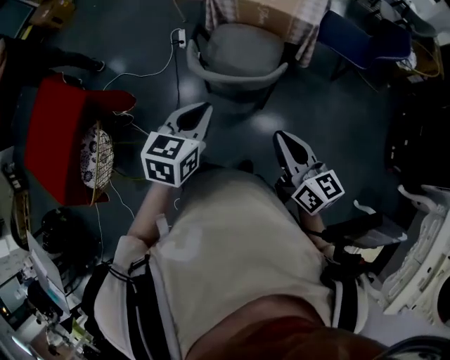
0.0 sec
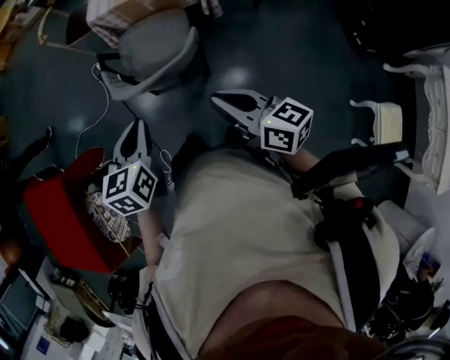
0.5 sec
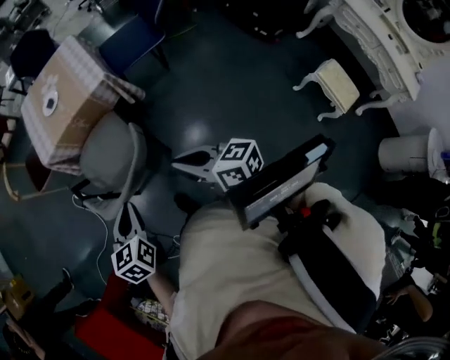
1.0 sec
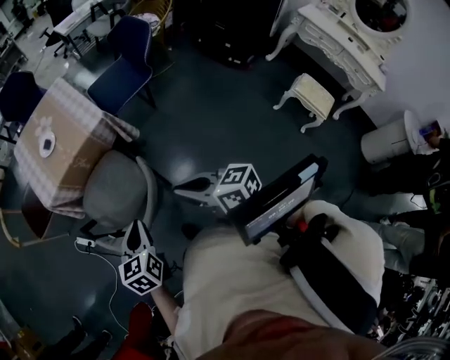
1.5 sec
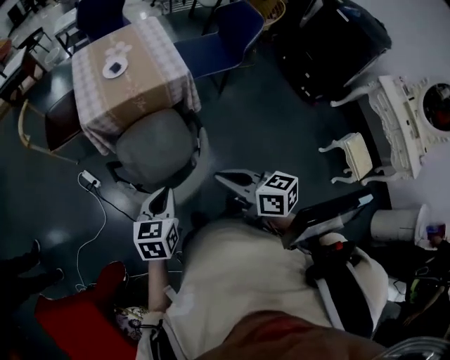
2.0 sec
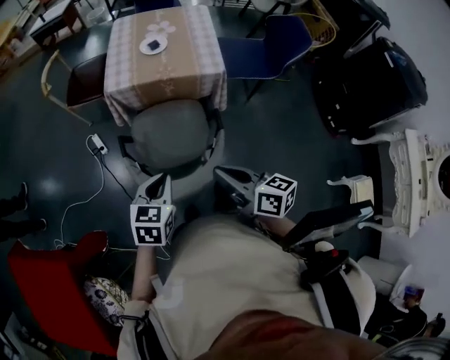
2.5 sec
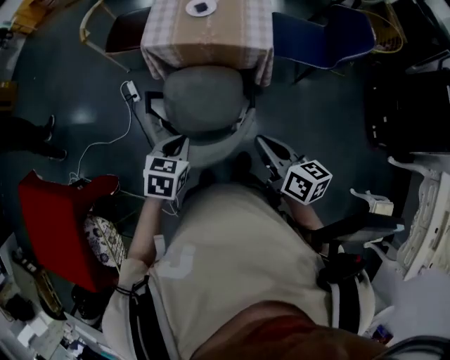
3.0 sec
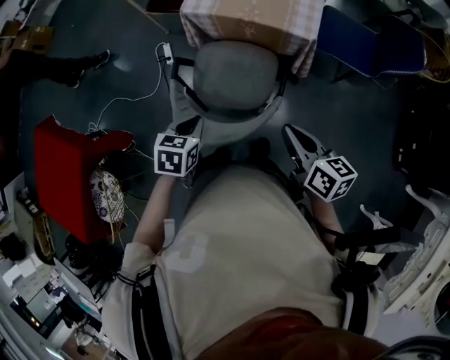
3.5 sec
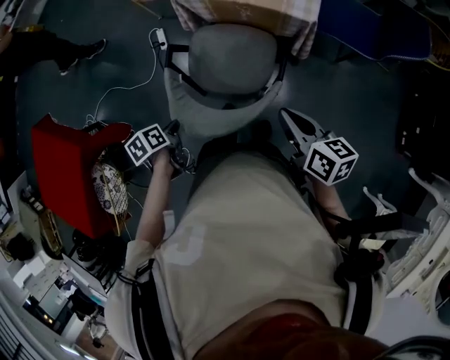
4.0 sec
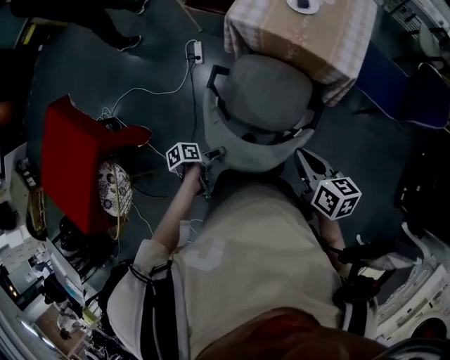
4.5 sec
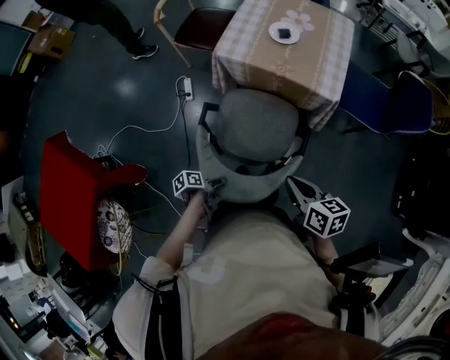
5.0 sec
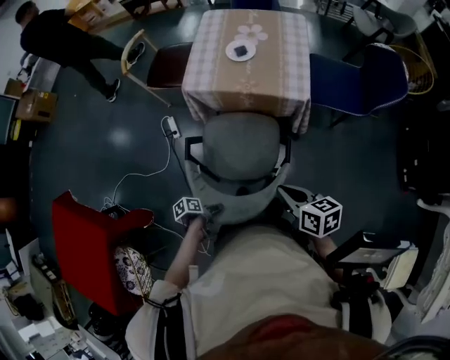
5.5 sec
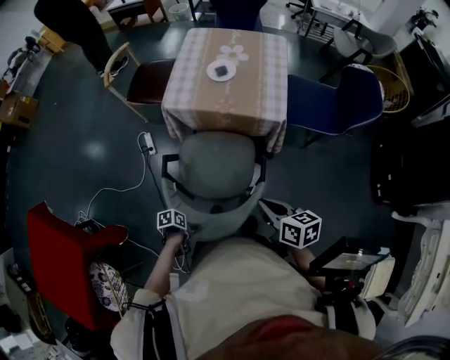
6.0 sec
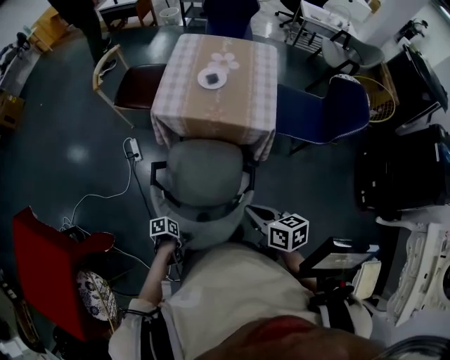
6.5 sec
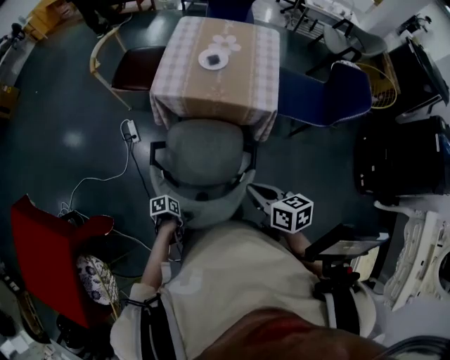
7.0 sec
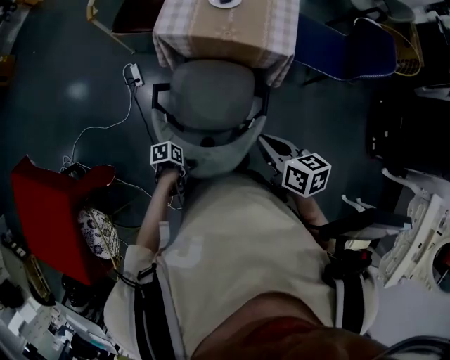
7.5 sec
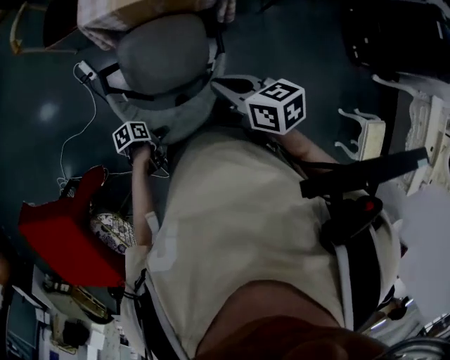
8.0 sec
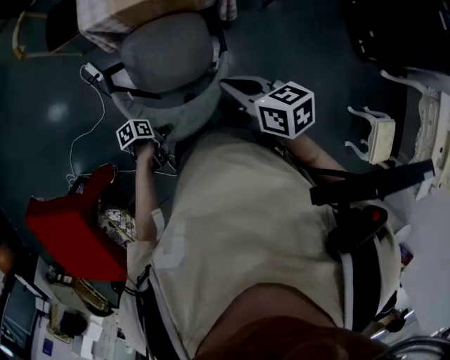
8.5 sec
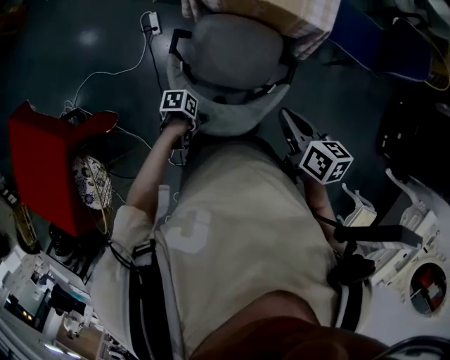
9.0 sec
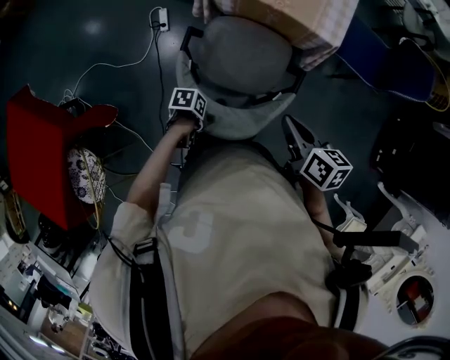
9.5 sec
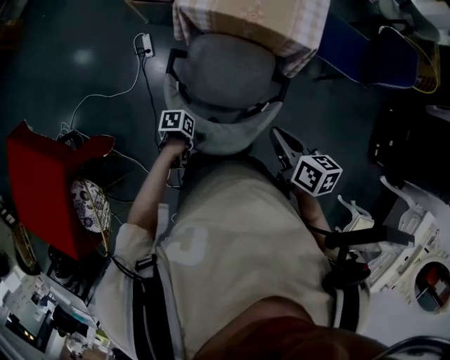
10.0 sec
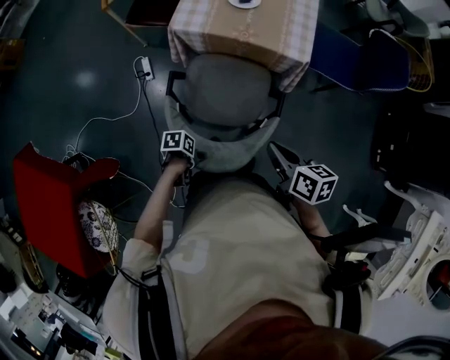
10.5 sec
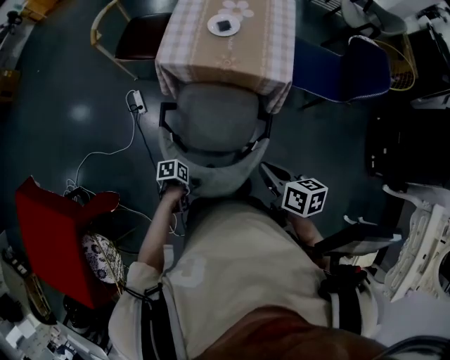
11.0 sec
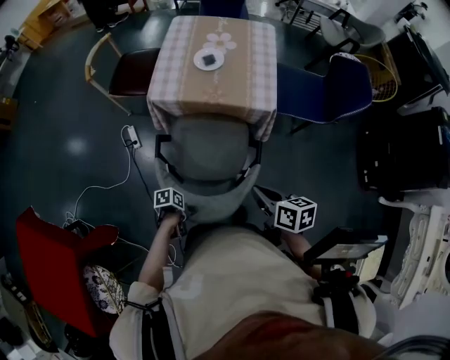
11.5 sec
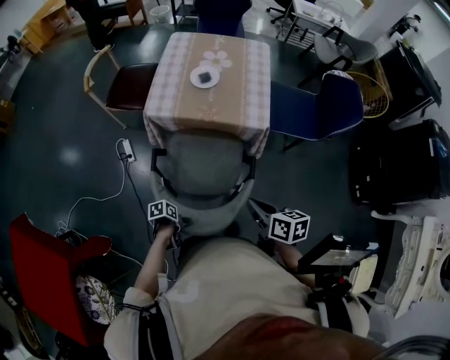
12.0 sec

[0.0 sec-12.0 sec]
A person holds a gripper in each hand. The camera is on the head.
0.0 sec to 2.0 sec: The right gripper ends up about 20 cm from where it was, and changes its angle by roughly 30 degrees, while the left gripper ends up about 20 cm from where it was, and turns by approximately 30 degrees.
2.0 sec to 4.0 sec: The right gripper changes place by about 20 cm, and turns by some 20 degrees, while the left gripper is displaced downward by some 15 cm, and twists some 70 degrees counterclockwise, seen from behind.
4.0 sec to 6.0 sec: The left gripper travels downward by roughly 15 cm, rotates approximately 40 degrees, and opens.
6.0 sec to 8.0 sec: The right gripper moves roughly 5 cm.
10.0 sec to 12.0 sec: The grippers stay close to where they were, moving slightly.

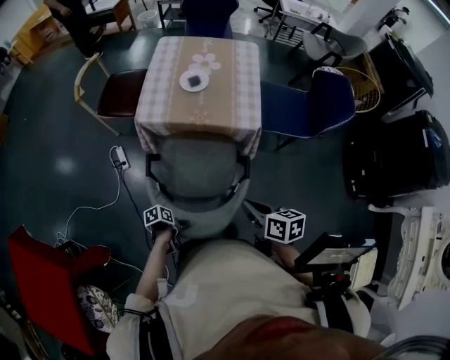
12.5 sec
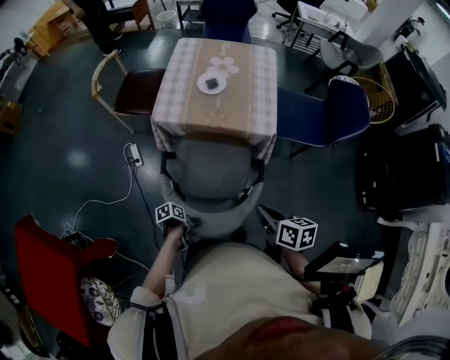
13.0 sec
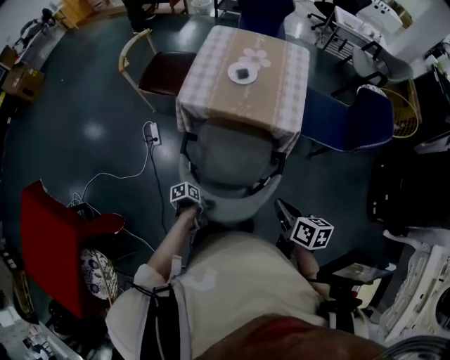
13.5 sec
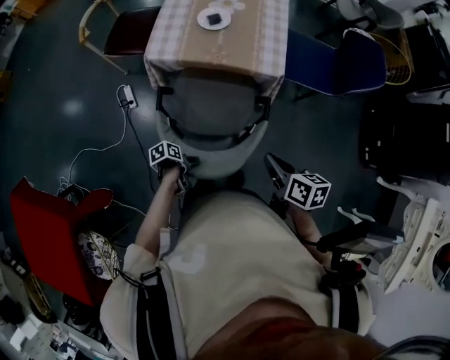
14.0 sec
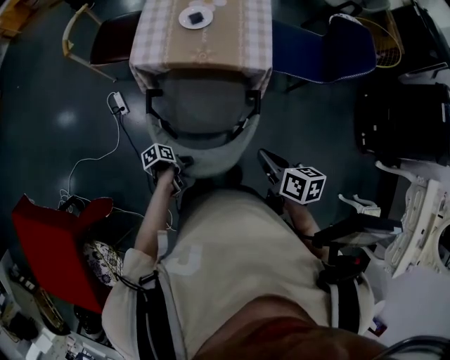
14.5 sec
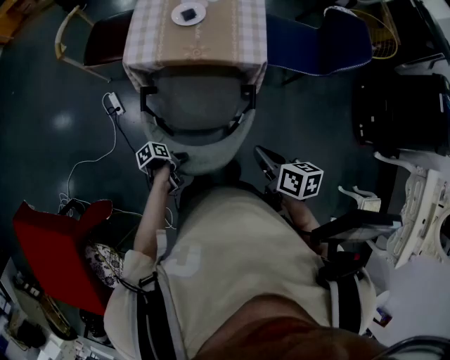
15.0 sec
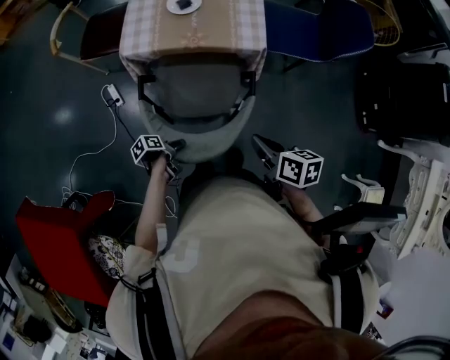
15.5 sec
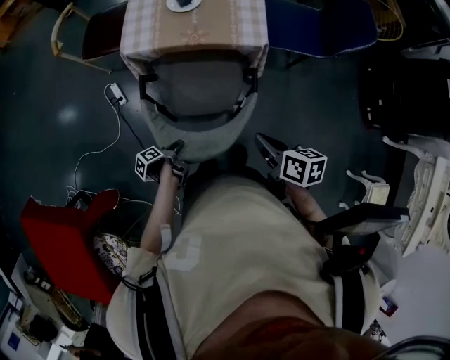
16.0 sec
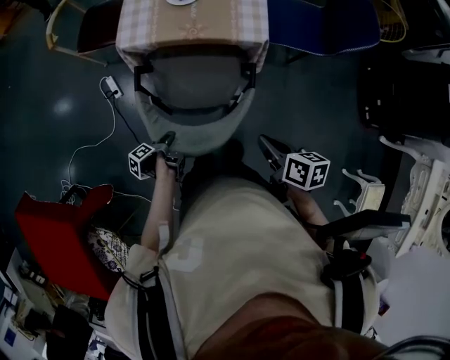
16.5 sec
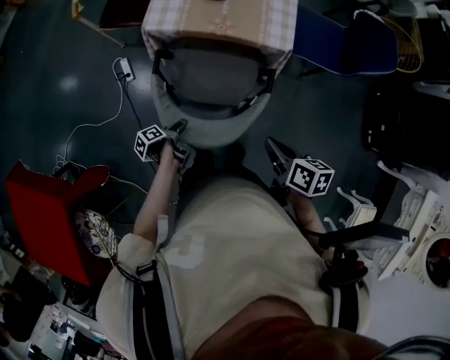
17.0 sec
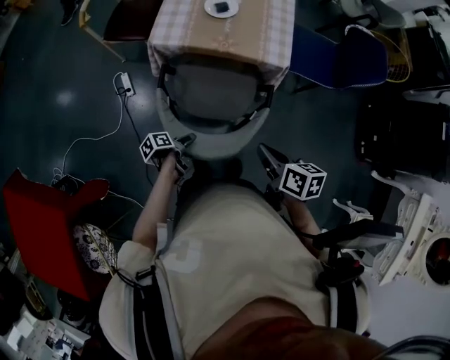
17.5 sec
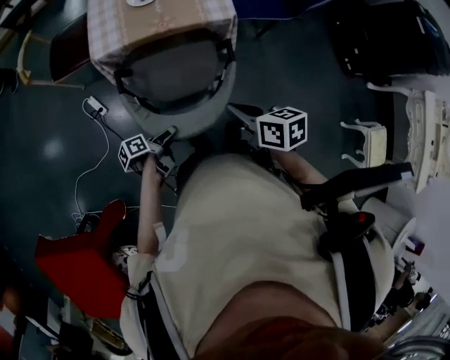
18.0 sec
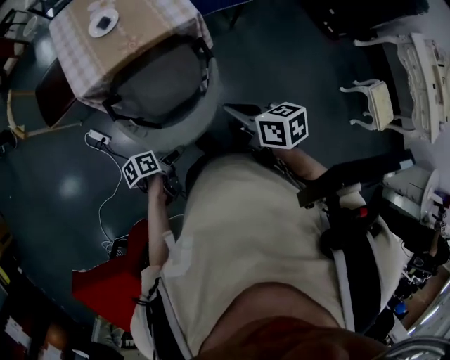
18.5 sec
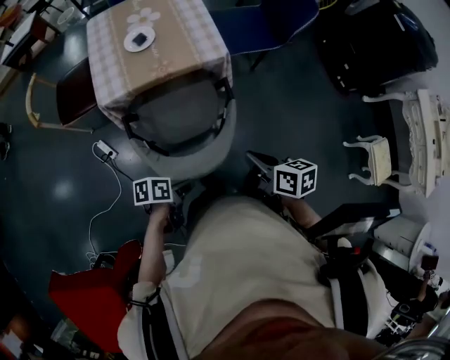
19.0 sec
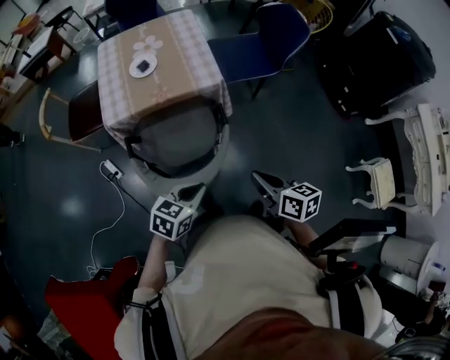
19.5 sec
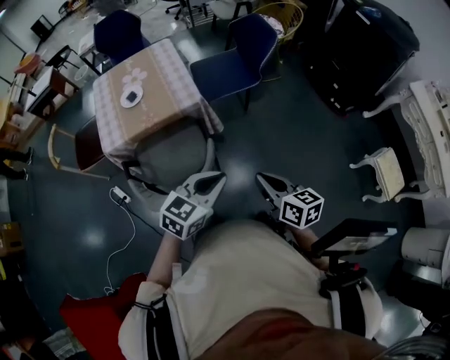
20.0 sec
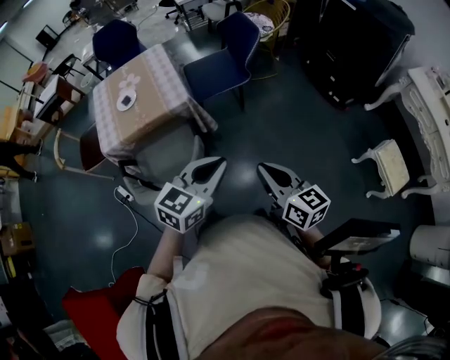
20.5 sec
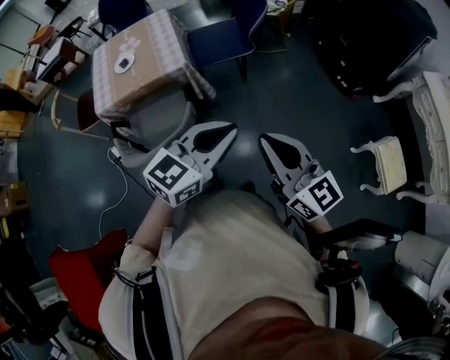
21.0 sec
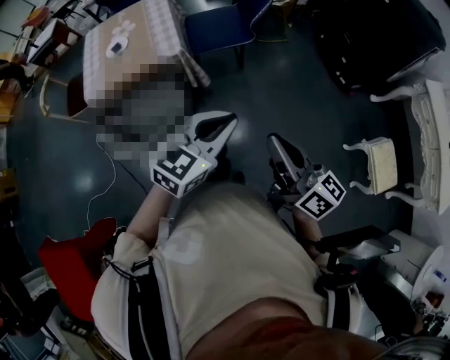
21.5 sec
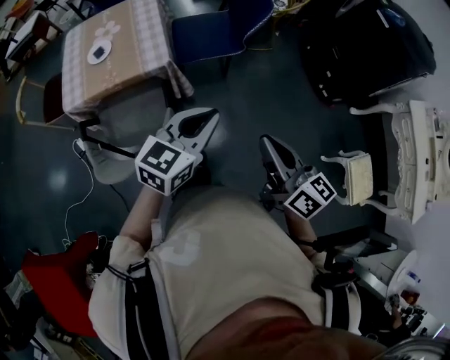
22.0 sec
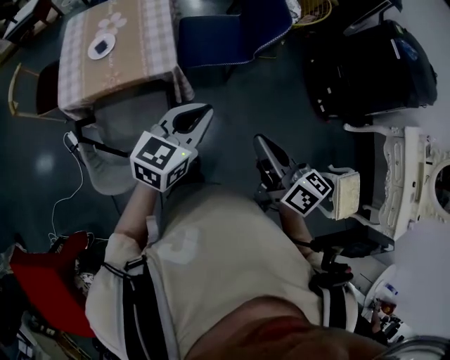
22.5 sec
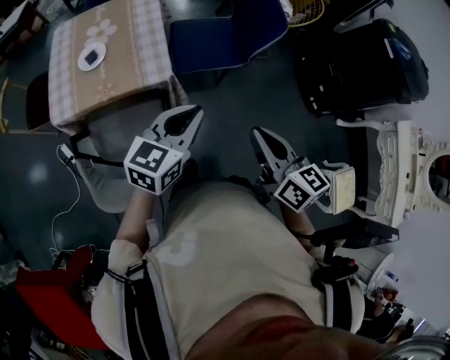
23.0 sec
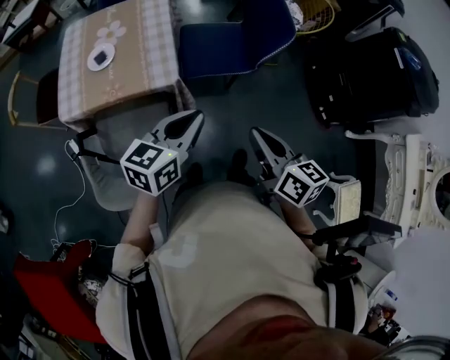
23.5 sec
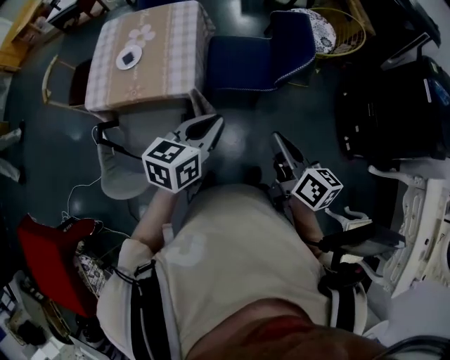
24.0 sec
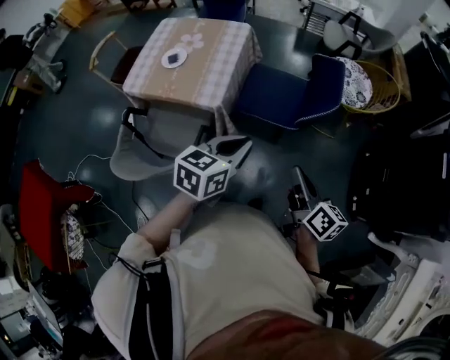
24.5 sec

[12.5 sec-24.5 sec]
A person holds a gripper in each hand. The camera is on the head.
12.5 sec to 14.5 sec: There are only small adjustments of the grippers.
14.5 sec to 16.5 sec: The left gripper swivels some 50 degrees.
16.5 sec to 18.5 sec: The right gripper ends up about 10 cm from where it was, while the left gripper is displaced upward by roughly 10 cm, and rolls clockwise, seen from behind, by some 60 degrees.
18.5 sec to 20.5 sec: The right gripper goes approximately 30 cm to the right, and changes its angle by some 30 degrees; the left gripper shifts some 40 cm to the right and upward, rolls clockwise, seen from behind, by about 80 degrees, and closes up.
20.5 sec to 22.5 sec: The two grippers go some 20 cm forward.
22.5 sec to 24.5 sec: The two grippers go about 20 cm to the right and forward. The left gripper swivels some 30 degrees.

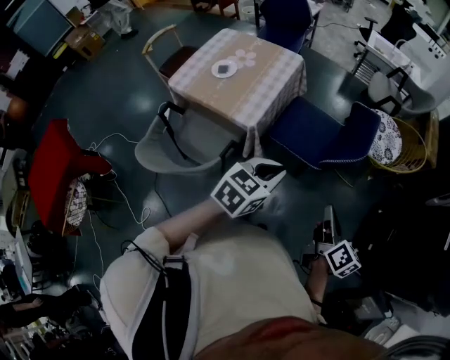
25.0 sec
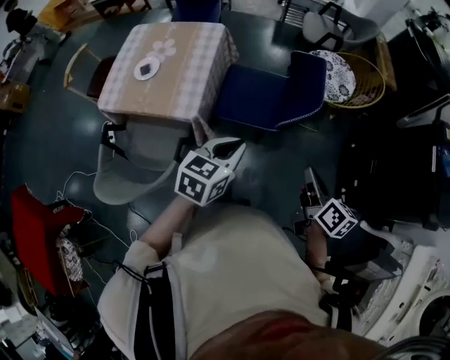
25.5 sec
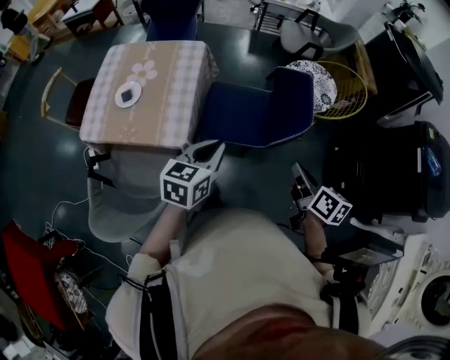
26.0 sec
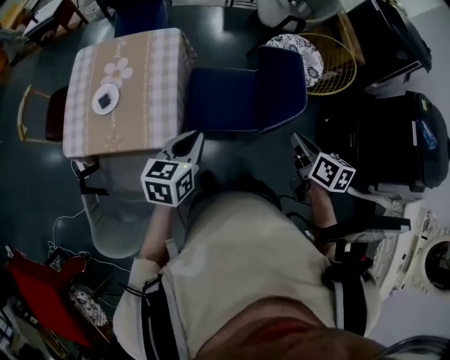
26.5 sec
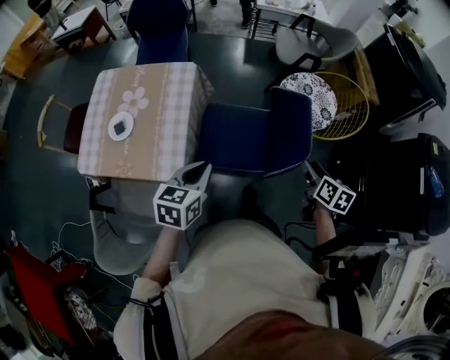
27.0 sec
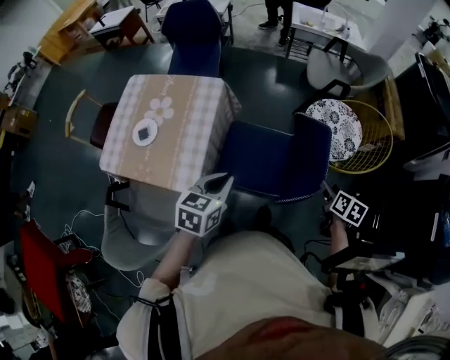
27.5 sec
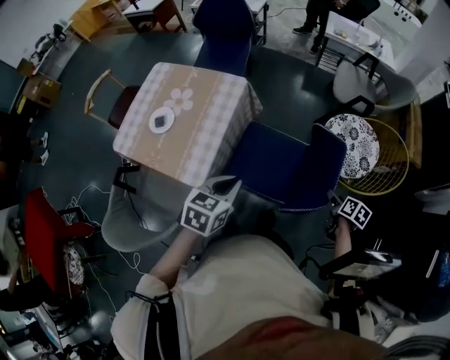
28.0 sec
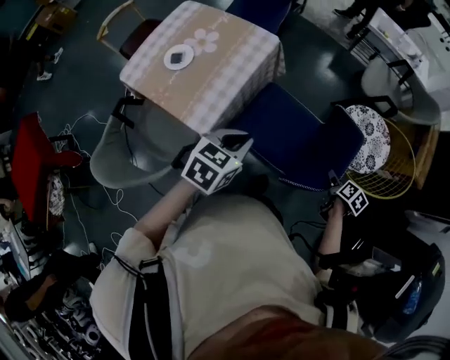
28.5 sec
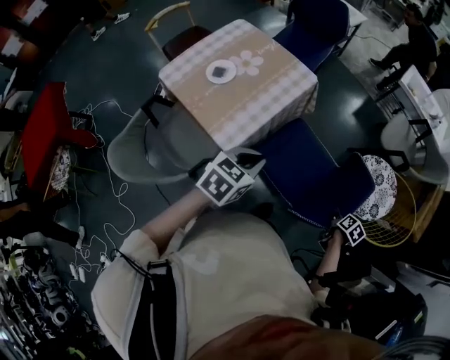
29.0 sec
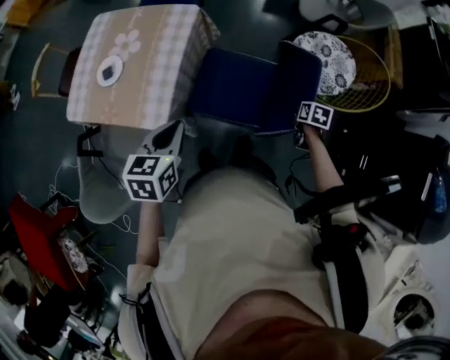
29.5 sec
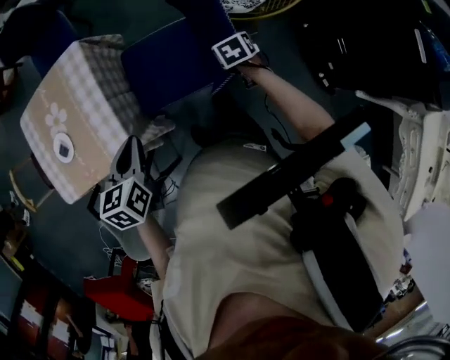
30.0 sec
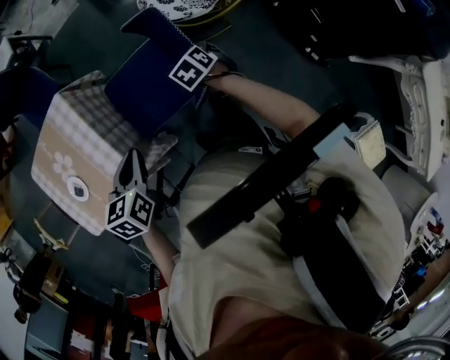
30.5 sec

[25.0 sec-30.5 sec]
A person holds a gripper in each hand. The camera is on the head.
25.0 sec to 27.0 sec: The right gripper moves forward, about 25 cm, swivels about 30 degrees, and opens its fingers. The left gripper is displaced forward and to the left by about 25 cm.
27.0 sec to 28.5 sec: The left gripper ends up about 5 cm from where it was; the right gripper shifts some 20 cm downward, forward and to the right, and rotates some 20 degrees.
28.5 sec to 30.5 sec: The right gripper moves some 5 cm, changes its angle by some 40 degrees, and closes up. Meanwhile the left gripper moves roughly 5 cm.
